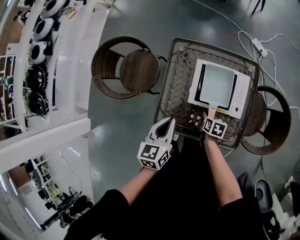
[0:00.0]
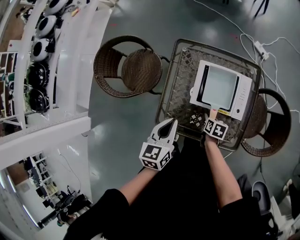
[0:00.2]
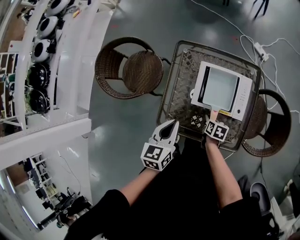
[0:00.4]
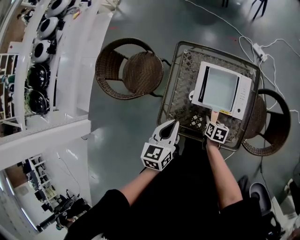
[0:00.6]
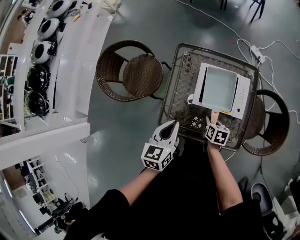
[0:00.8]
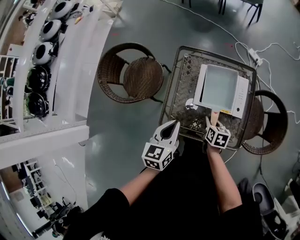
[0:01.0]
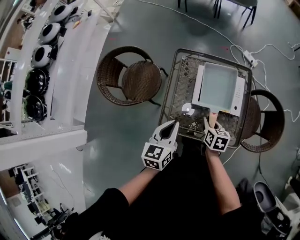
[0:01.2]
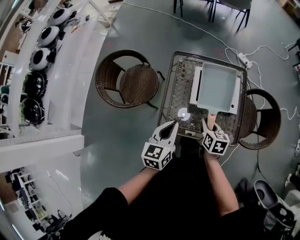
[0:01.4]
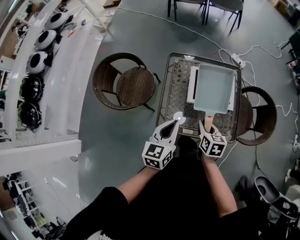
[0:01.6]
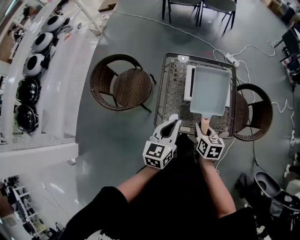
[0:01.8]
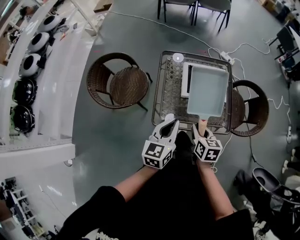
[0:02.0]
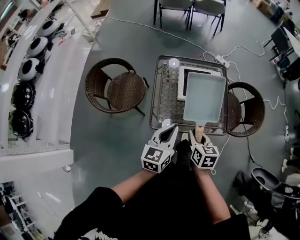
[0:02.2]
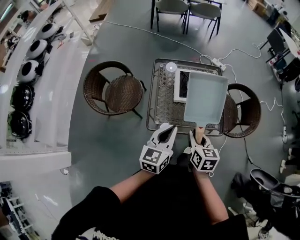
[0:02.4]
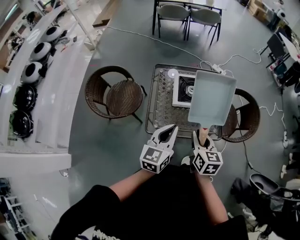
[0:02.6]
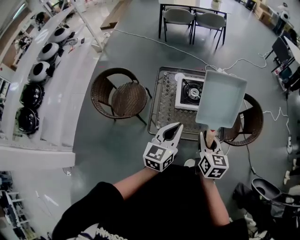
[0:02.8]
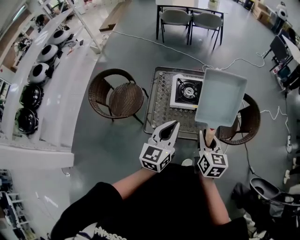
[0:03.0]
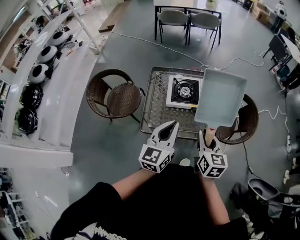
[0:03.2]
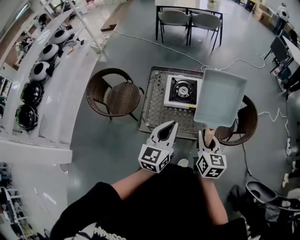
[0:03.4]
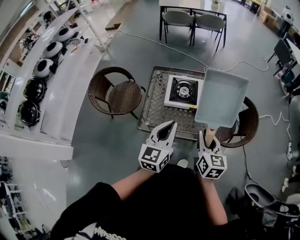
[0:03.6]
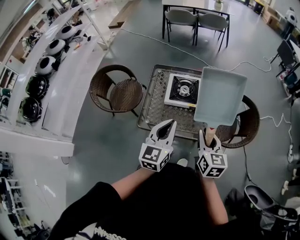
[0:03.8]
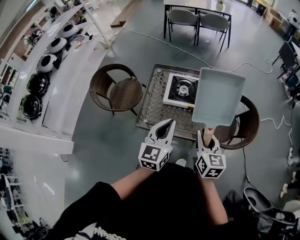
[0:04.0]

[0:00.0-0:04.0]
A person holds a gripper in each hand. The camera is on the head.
0:00.0 to 0:01.4: The right gripper travels upward by about 15 cm, and changes its angle by some 20 degrees; the left gripper heads backward, covering roughly 10 cm.
0:01.4 to 0:02.6: The left gripper is displaced backward, upward and to the right by some 15 cm, while the right gripper travels upward and backward by about 20 cm.
0:02.6 to 0:04.0: The two grippers go about 15 cm to the right.

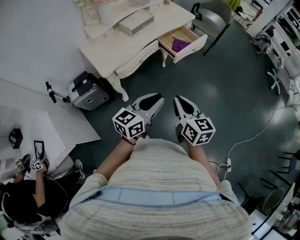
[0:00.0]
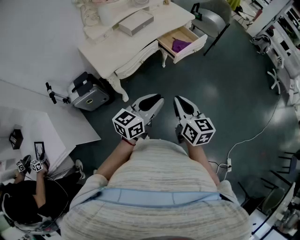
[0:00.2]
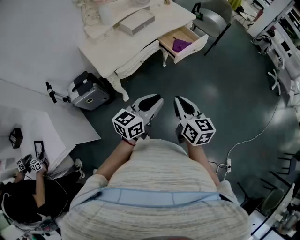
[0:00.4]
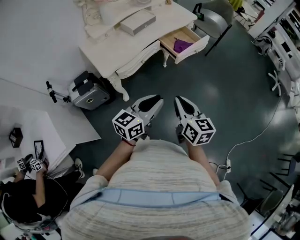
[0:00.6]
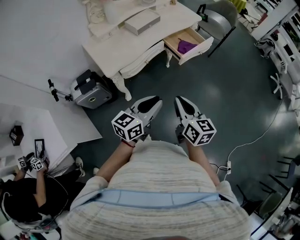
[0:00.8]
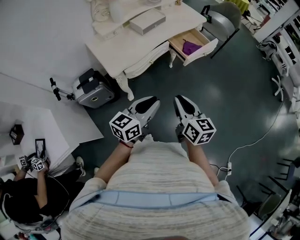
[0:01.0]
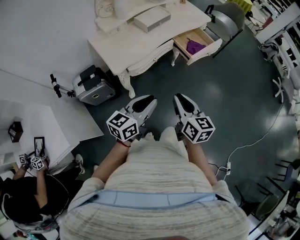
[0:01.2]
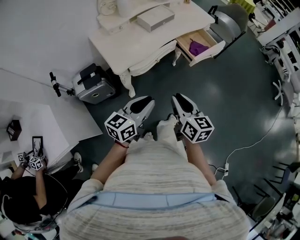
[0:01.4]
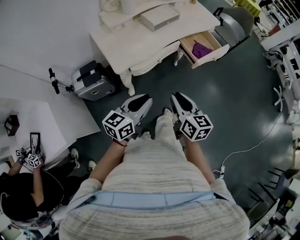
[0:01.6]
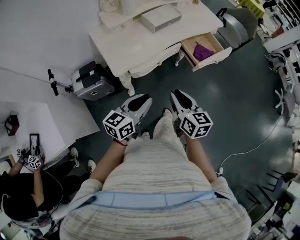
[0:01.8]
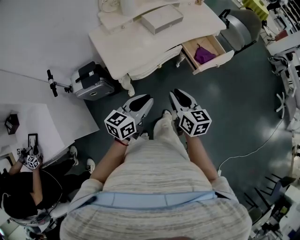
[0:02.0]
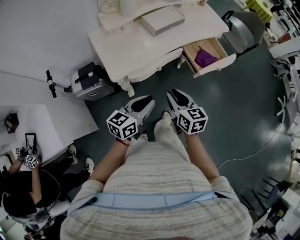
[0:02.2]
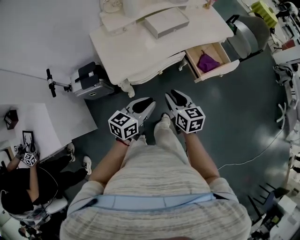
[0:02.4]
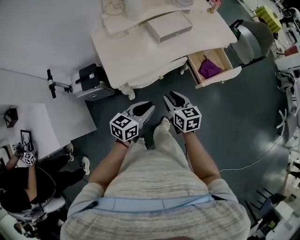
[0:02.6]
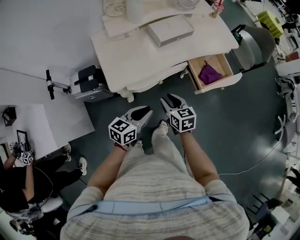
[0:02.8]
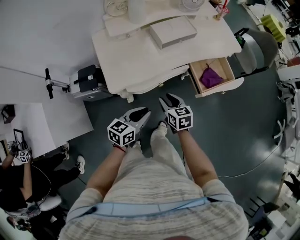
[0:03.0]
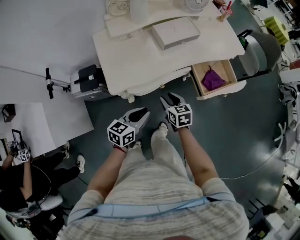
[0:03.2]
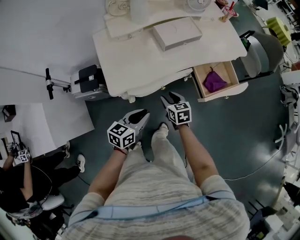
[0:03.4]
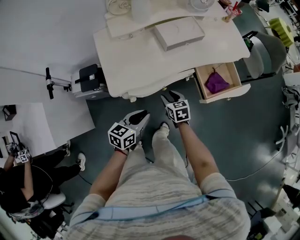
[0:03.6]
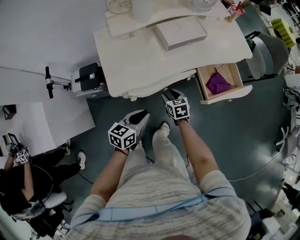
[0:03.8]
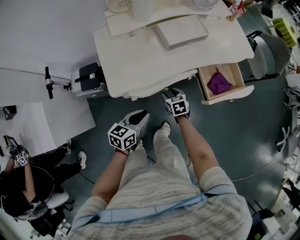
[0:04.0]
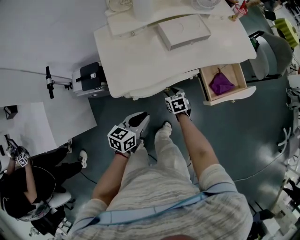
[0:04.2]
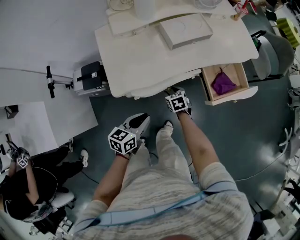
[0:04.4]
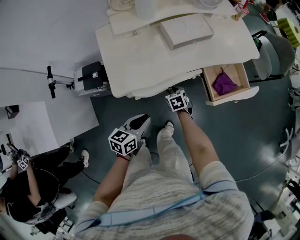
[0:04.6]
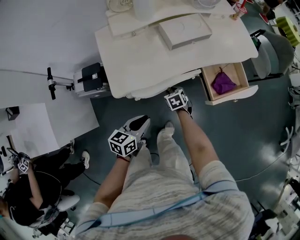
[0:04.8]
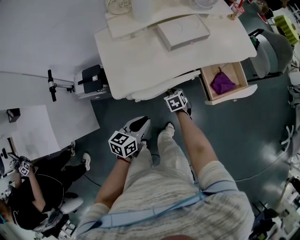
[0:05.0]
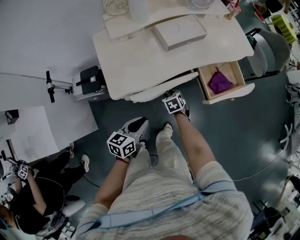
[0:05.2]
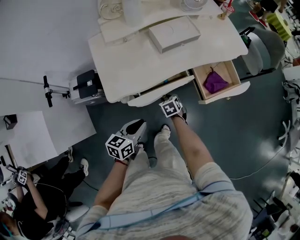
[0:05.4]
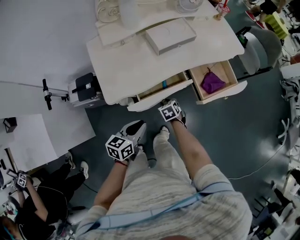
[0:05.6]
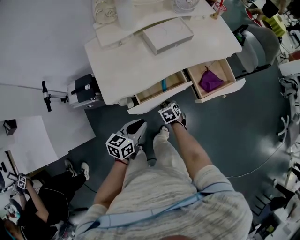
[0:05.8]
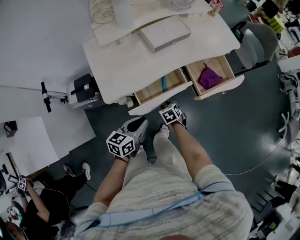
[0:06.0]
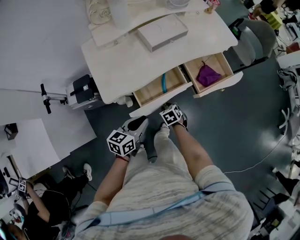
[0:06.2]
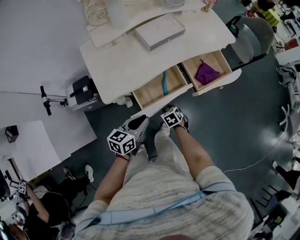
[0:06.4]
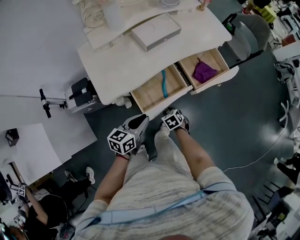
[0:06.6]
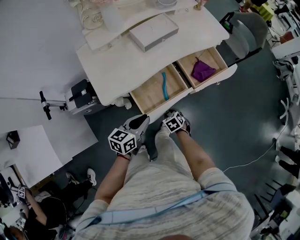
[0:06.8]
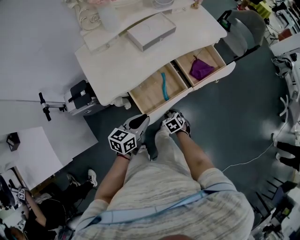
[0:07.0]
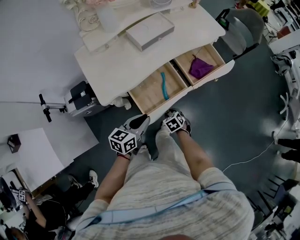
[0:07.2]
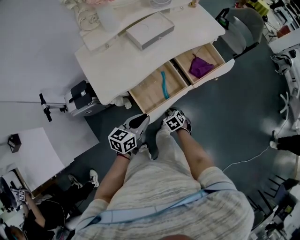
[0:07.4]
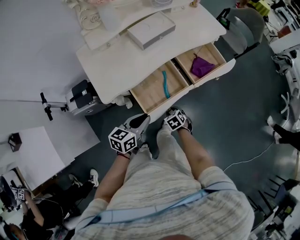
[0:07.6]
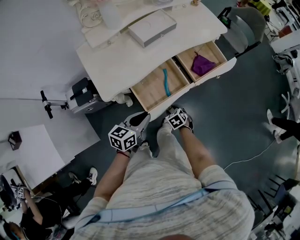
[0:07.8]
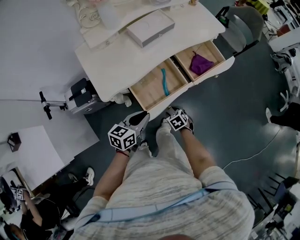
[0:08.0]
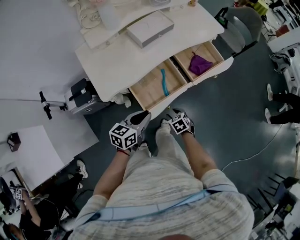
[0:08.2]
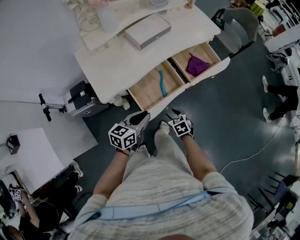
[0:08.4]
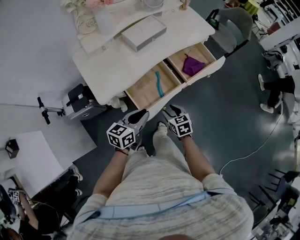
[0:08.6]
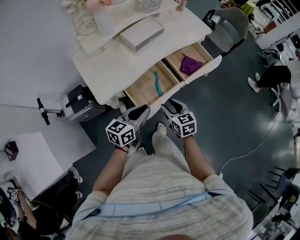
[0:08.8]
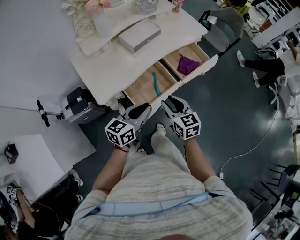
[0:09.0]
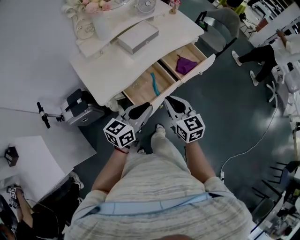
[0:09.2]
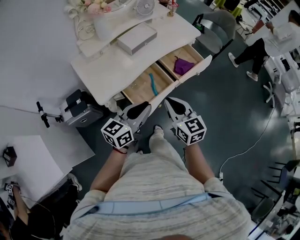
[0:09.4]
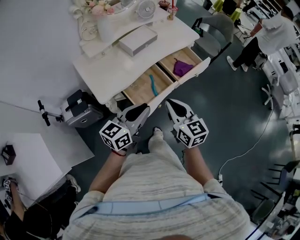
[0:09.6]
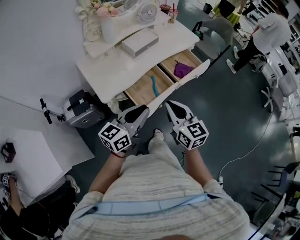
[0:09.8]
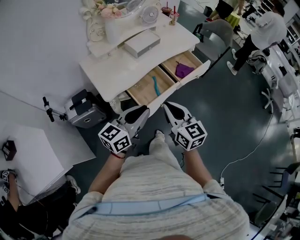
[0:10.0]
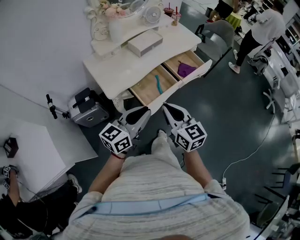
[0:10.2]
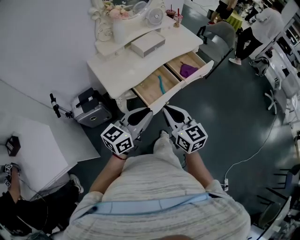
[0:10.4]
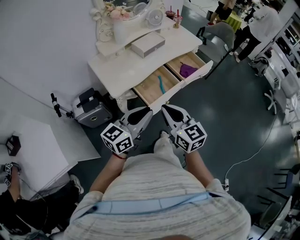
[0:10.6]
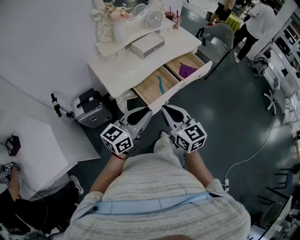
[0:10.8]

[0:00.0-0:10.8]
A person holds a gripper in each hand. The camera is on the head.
0:00.0 to 0:01.6: The right gripper moves to the left and forward, some 15 cm. Meanwhile the left gripper goes approximately 15 cm to the left.
0:01.6 to 0:03.0: The grippers both shift forward and downward by about 20 cm. The right gripper rotates approximately 30 degrees.
0:03.0 to 0:04.6: The right gripper shifts some 20 cm downward and forward, and turns by approximately 30 degrees, while the left gripper moves approximately 5 cm.
0:04.6 to 0:06.2: The right gripper heads backward, covering some 10 cm.
0:06.2 to 0:07.8: The right gripper travels backward by approximately 5 cm.
0:07.8 to 0:09.2: The left gripper travels upward by approximately 15 cm; the right gripper moves upward, roughly 30 cm, tilts its fingers roughly 50 degrees upward, and closes up.
0:09.2 to 0:10.8: Both grippers move backward and upward, roughly 20 cm.

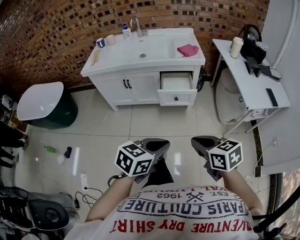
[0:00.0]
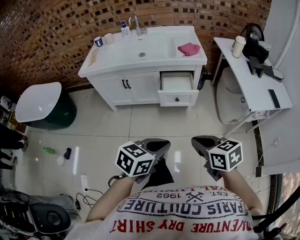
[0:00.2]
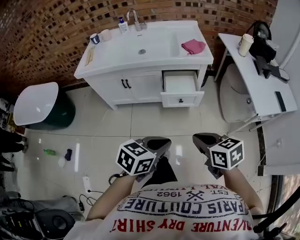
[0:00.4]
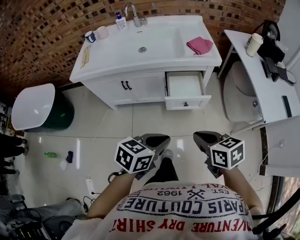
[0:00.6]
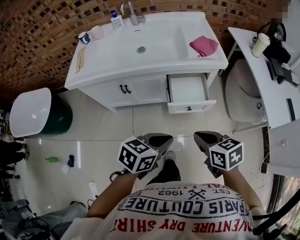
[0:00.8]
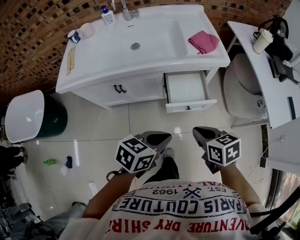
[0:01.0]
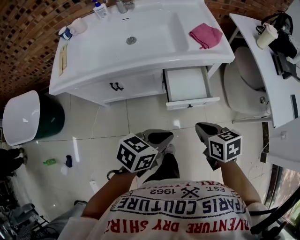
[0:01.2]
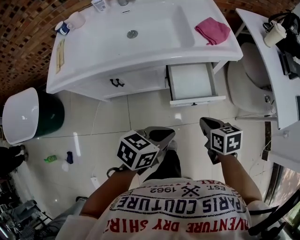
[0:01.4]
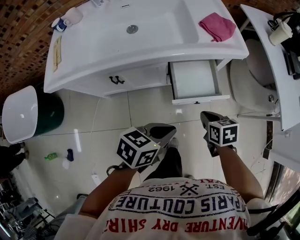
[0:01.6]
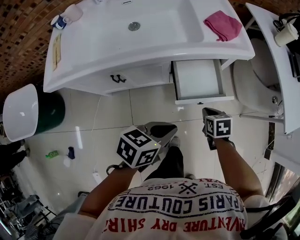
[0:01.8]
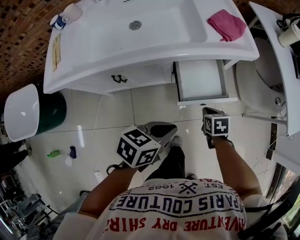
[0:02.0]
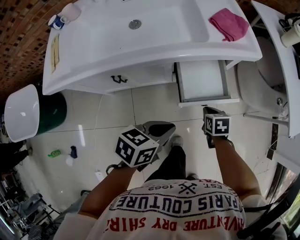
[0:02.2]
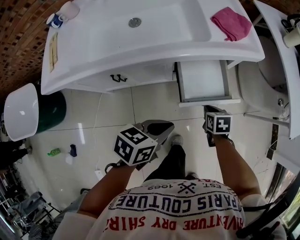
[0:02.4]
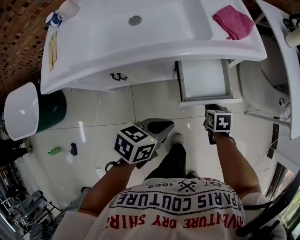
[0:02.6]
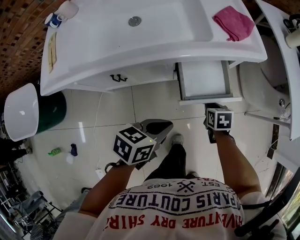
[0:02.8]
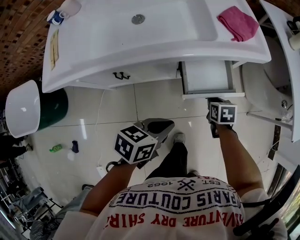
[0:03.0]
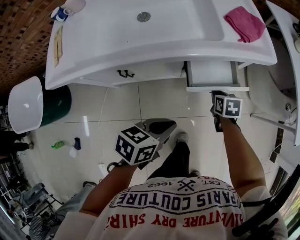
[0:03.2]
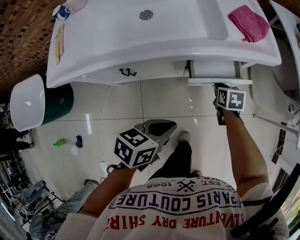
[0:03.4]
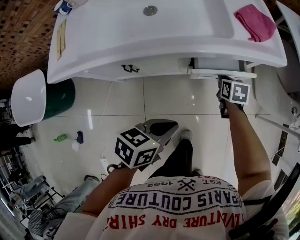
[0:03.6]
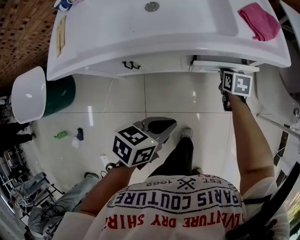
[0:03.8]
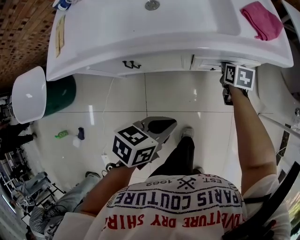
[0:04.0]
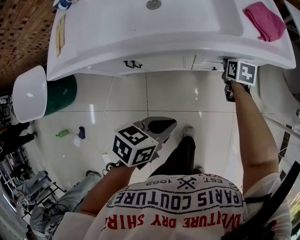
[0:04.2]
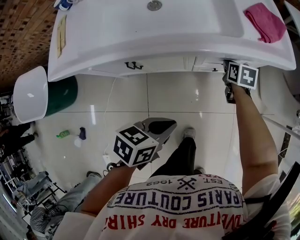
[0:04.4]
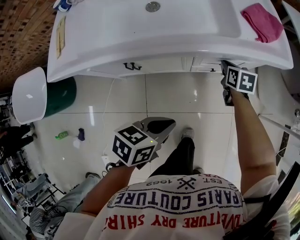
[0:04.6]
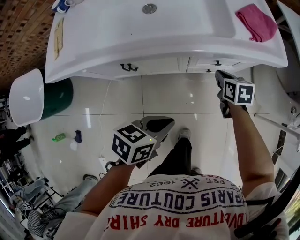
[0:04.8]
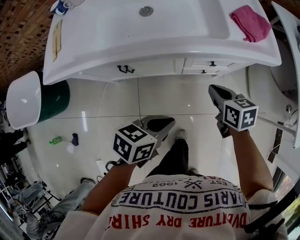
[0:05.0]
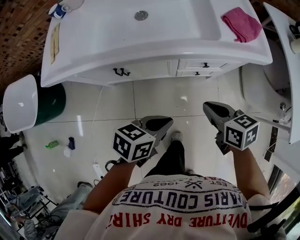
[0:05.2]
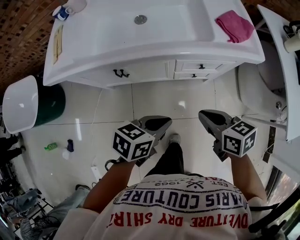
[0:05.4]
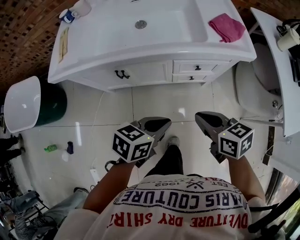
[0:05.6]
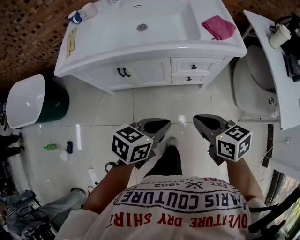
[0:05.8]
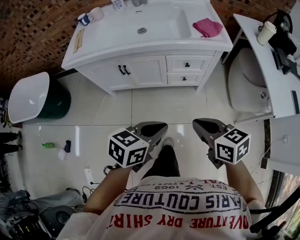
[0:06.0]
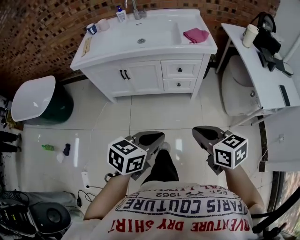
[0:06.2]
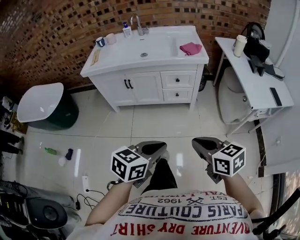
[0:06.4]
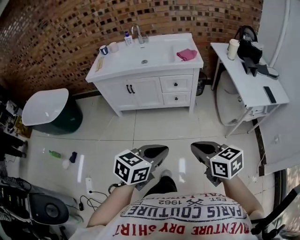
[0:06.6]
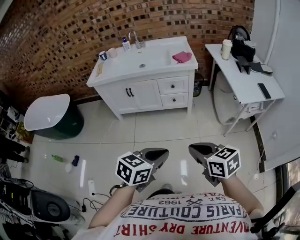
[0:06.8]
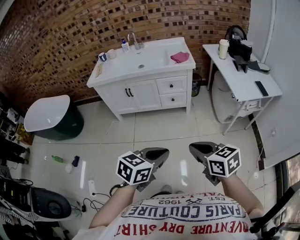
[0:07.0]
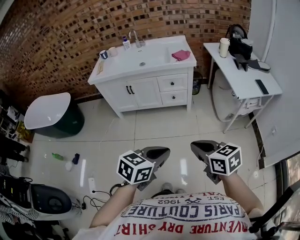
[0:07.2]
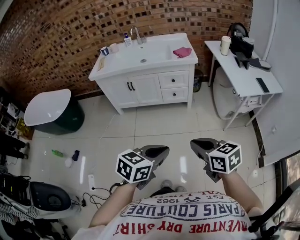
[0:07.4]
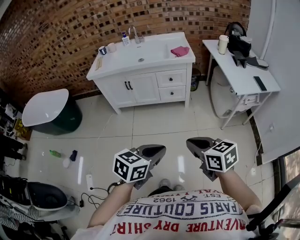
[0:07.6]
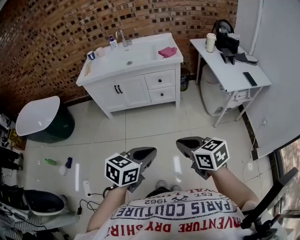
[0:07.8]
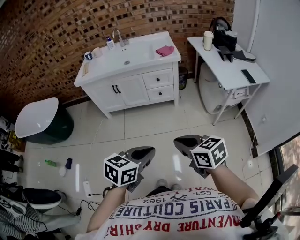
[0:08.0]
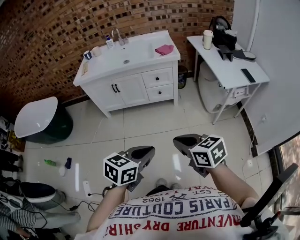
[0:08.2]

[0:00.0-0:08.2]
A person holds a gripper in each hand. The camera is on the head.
0:00.0 to 0:01.6: Both grippers are carried forward, about 40 cm. The left gripper turns by approximately 20 degrees; the right gripper goes roughly 25 cm downward, and rotates about 30 degrees.
0:01.6 to 0:03.2: The right gripper heads downward and forward, covering some 15 cm; the left gripper travels to the left and downward by some 10 cm.
0:03.2 to 0:05.0: The right gripper moves upward and to the left, some 10 cm, goes forward and returns, about 10 cm each way, and changes its angle by approximately 20 degrees.
0:05.0 to 0:06.6: The two grippers travel together, backward, roughly 50 cm. The two grippers go about 25 cm upward. The left gripper turns by about 30 degrees; the right gripper rotates some 30 degrees.
0:06.6 to 0:08.2: Both grippers move backward, approximately 10 cm.
